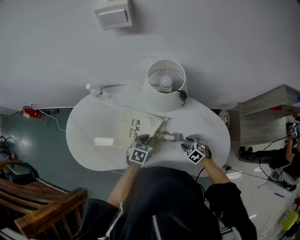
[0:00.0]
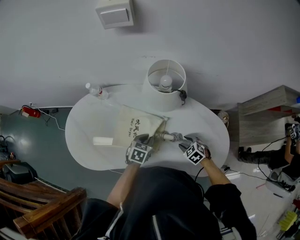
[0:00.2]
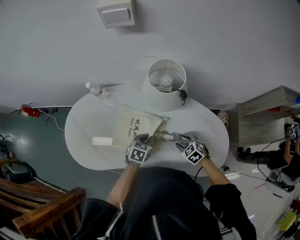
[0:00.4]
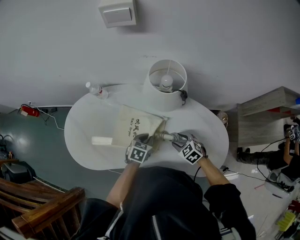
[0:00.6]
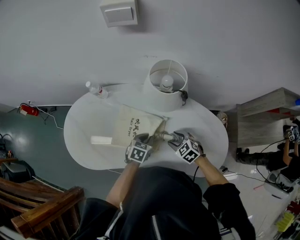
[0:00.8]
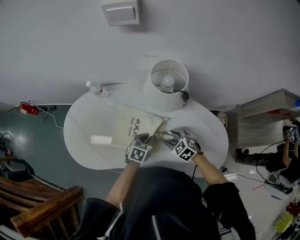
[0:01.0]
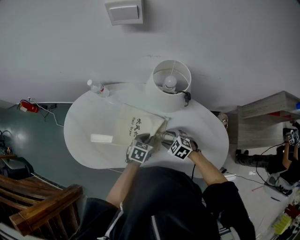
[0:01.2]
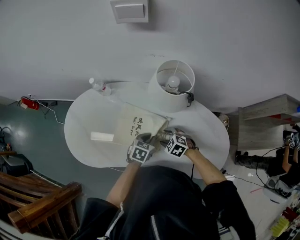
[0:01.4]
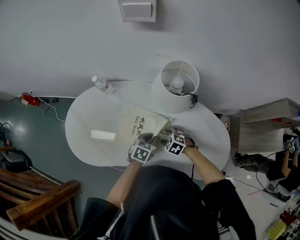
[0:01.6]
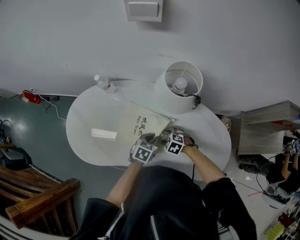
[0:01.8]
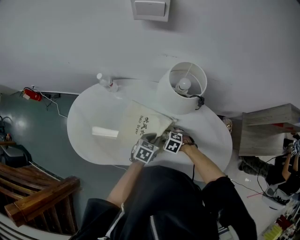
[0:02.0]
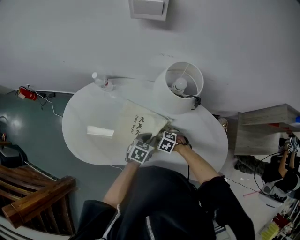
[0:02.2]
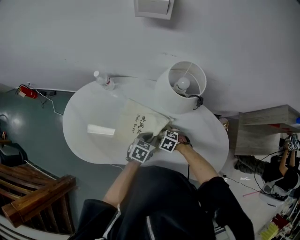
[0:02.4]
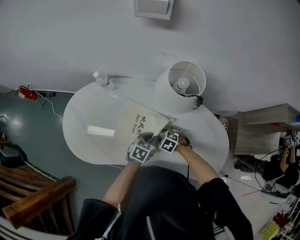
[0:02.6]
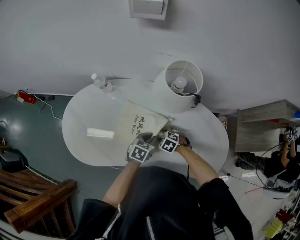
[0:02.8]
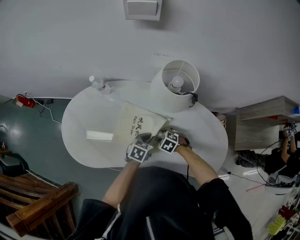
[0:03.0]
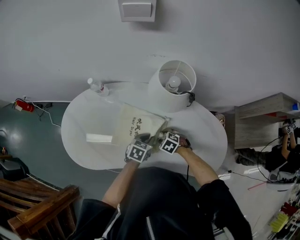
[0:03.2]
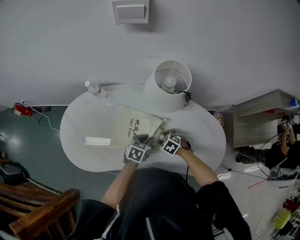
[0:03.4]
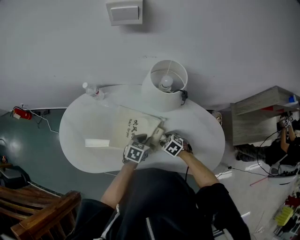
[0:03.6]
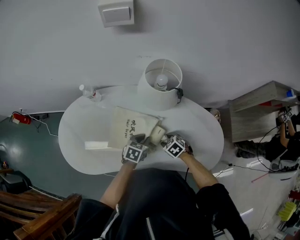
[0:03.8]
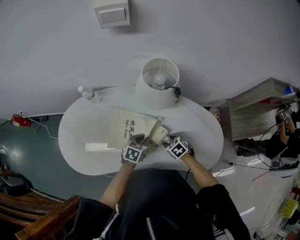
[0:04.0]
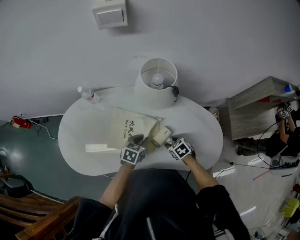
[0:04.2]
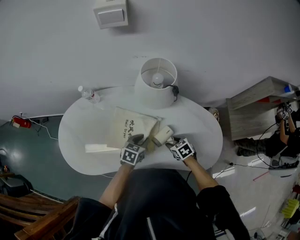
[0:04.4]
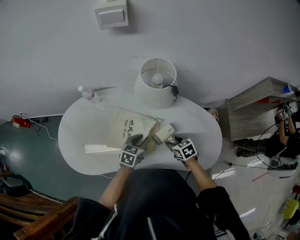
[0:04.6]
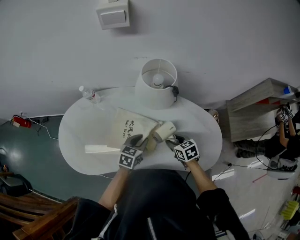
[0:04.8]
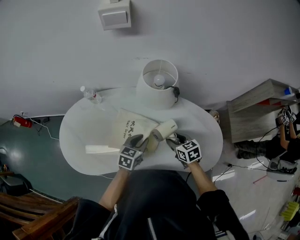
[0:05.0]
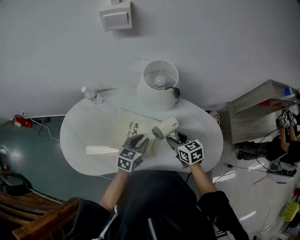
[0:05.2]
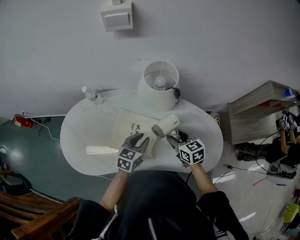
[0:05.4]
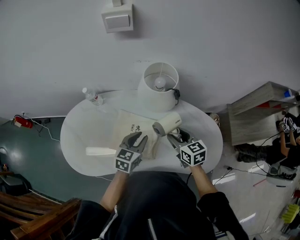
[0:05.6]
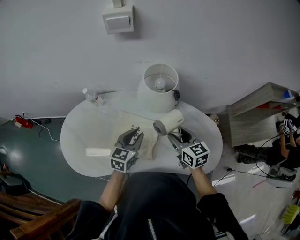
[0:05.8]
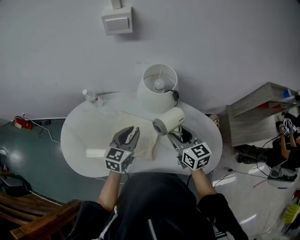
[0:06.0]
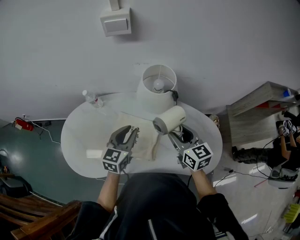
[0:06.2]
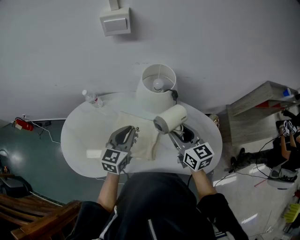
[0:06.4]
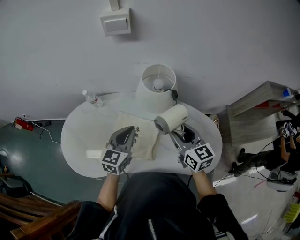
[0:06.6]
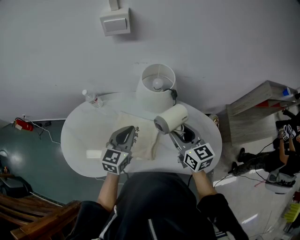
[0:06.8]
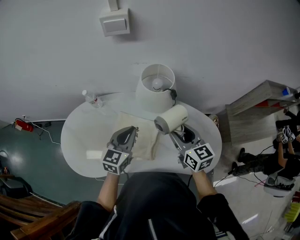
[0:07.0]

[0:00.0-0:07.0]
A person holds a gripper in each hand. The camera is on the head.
0:00.0 to 0:01.4: The right gripper moves to the left and forward, approximately 15 cm, and opens.
0:01.4 to 0:02.8: The right gripper changes place by some 5 cm.
0:02.8 to 0:04.2: The right gripper moves to the right and backward, some 10 cm, and changes its angle by roughly 40 degrees.
0:04.2 to 0:05.6: The right gripper shifts about 20 cm upward, and tilts its fingers some 30 degrees upward; the left gripper is displaced upward by about 10 cm.
0:05.6 to 0:07.0: The two grippers go roughly 10 cm upward.

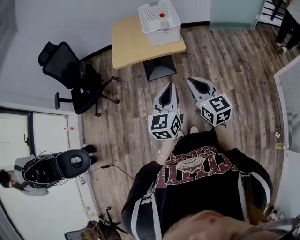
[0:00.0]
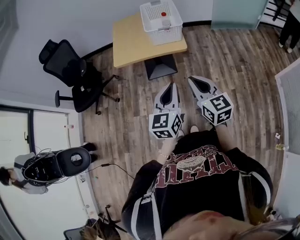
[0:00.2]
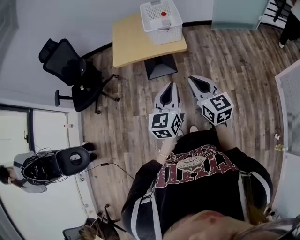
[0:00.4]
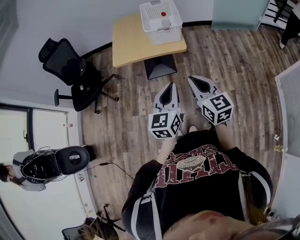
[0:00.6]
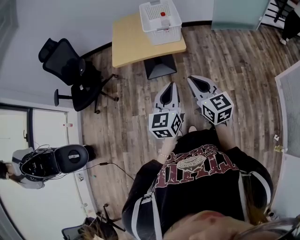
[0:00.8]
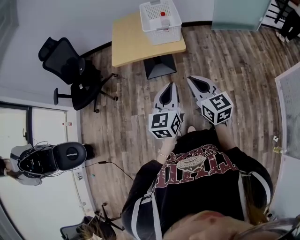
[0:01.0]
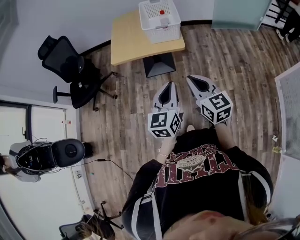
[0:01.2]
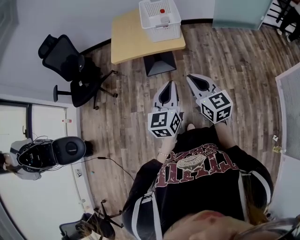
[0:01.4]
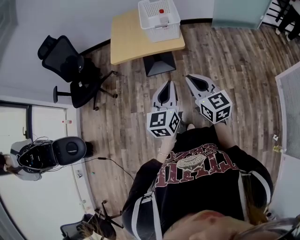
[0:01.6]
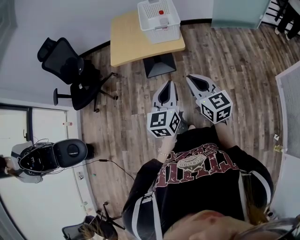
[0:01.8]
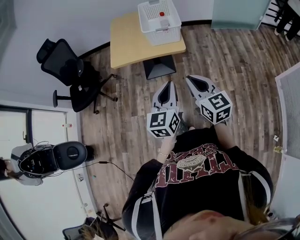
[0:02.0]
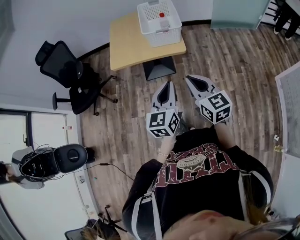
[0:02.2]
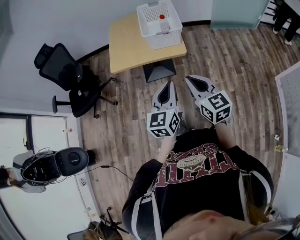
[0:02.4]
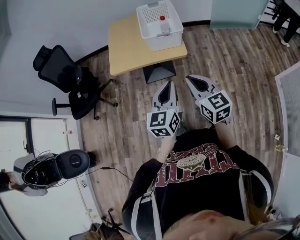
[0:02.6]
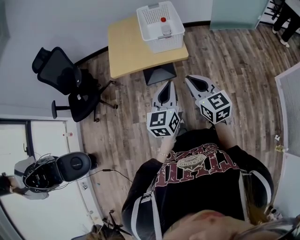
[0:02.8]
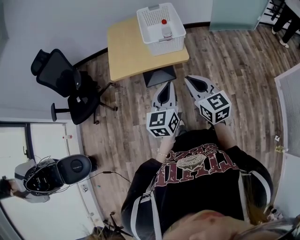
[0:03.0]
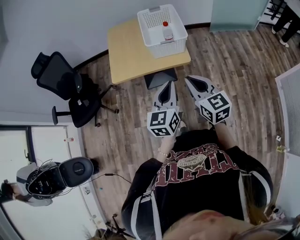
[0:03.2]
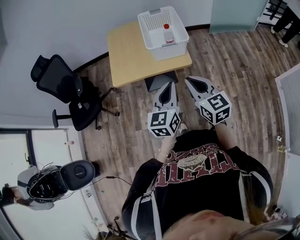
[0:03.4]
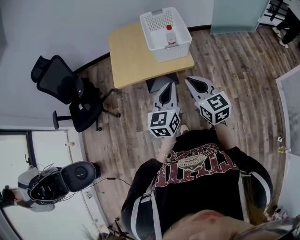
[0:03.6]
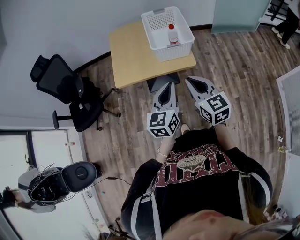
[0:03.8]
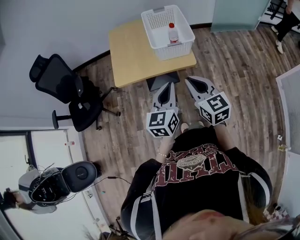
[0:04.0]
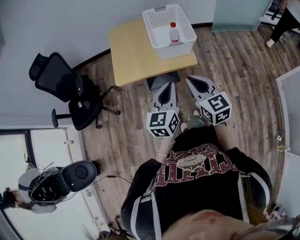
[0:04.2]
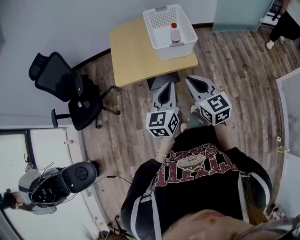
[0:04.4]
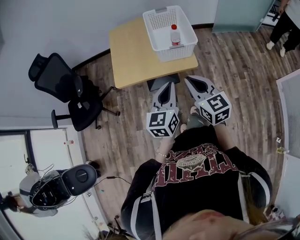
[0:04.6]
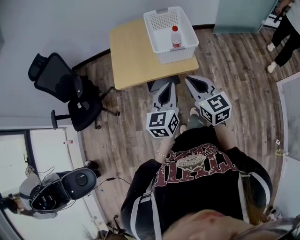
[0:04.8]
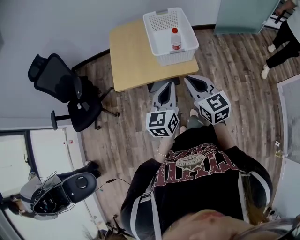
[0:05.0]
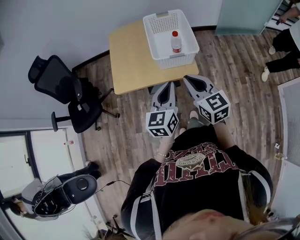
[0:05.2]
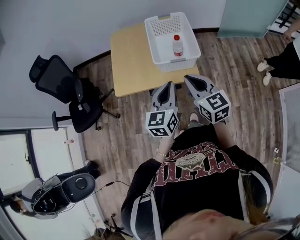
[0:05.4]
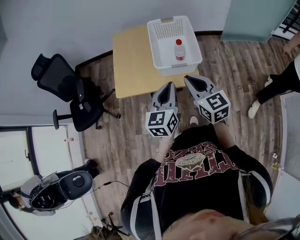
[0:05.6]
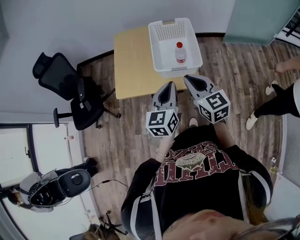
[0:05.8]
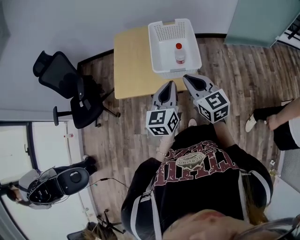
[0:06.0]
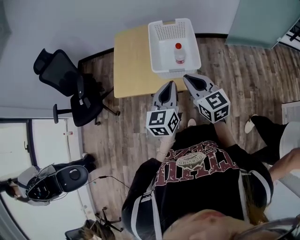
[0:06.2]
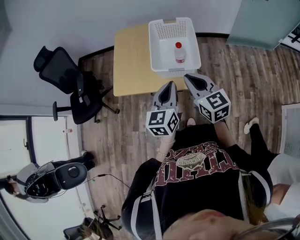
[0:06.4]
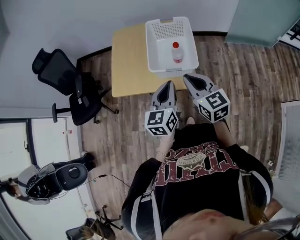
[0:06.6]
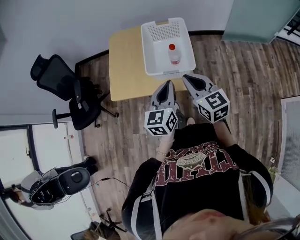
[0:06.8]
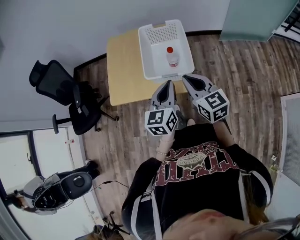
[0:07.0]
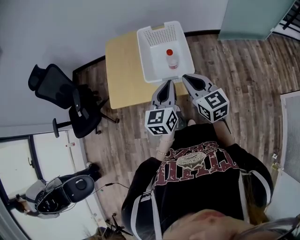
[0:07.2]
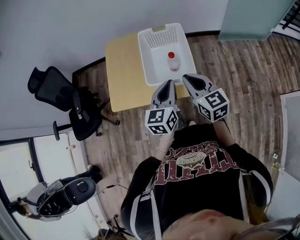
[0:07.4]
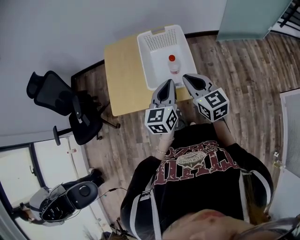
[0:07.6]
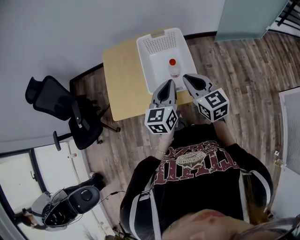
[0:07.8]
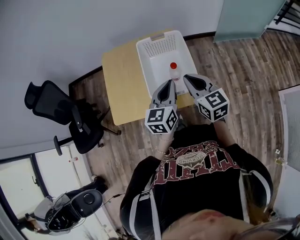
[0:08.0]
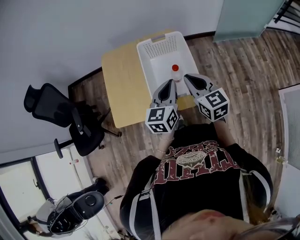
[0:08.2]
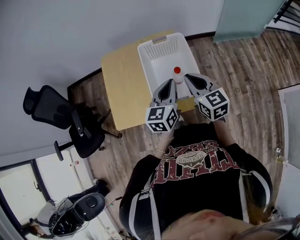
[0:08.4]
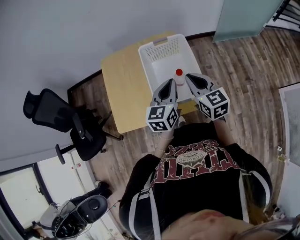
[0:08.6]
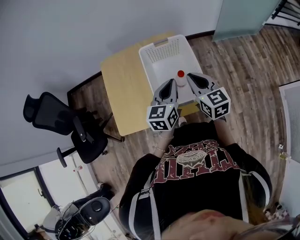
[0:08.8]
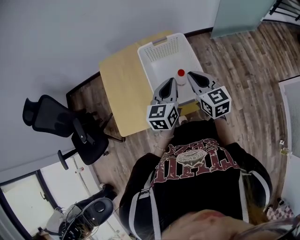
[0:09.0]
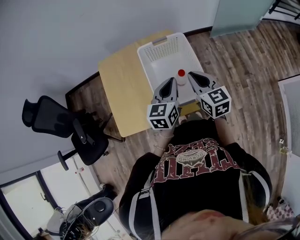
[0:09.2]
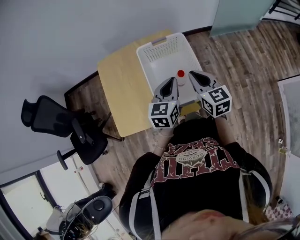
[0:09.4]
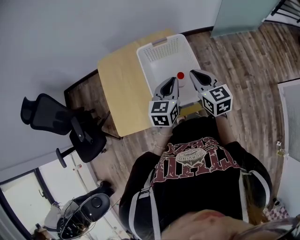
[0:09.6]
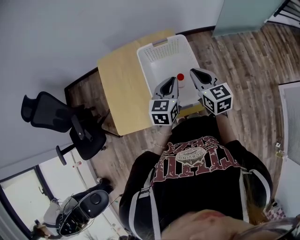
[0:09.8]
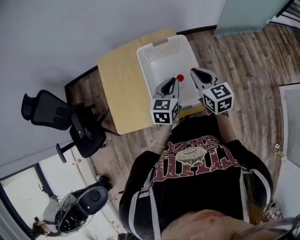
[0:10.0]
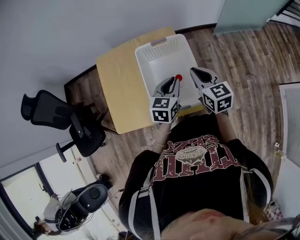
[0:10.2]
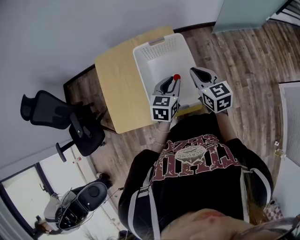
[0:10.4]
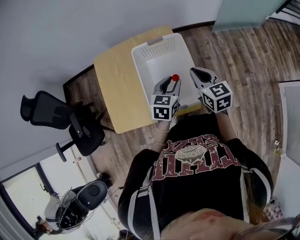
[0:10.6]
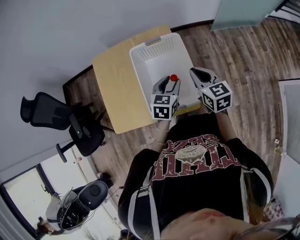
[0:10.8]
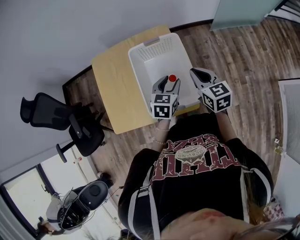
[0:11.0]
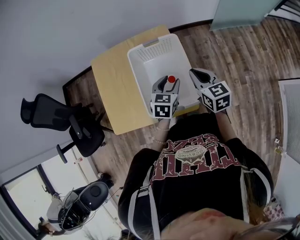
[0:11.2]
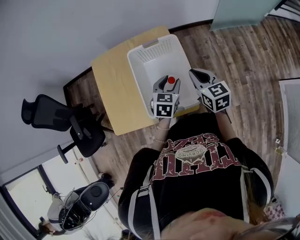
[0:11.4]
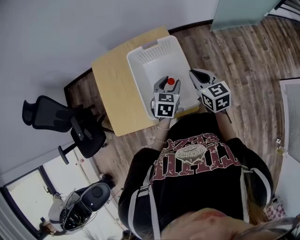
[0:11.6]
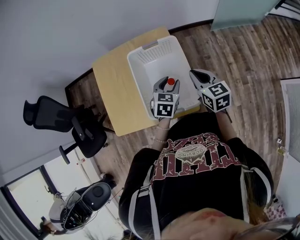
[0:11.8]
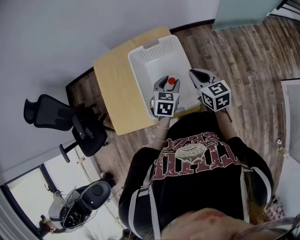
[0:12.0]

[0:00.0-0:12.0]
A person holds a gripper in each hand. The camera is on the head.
0:00.0 to 0:01.6: The grippers move only a little.
0:01.6 to 0:03.0: Both grippers move forward, roughly 15 cm.
0:03.0 to 0:04.4: The grippers both shift forward and to the left by about 10 cm.
0:04.4 to 0:06.0: The right gripper goes some 15 cm forward; the left gripper moves forward and to the right, some 15 cm.
0:06.0 to 0:07.6: Both grippers travel together forward, some 10 cm.
0:07.6 to 0:09.0: The two grippers go about 10 cm forward.
0:09.0 to 0:10.4: The left gripper goes some 5 cm downward. The right gripper ends up some 5 cm from where it was.
0:10.4 to 0:12.0: The left gripper opens its fingers.

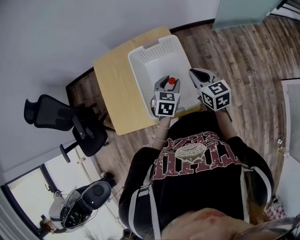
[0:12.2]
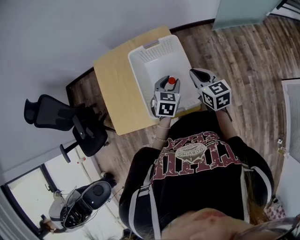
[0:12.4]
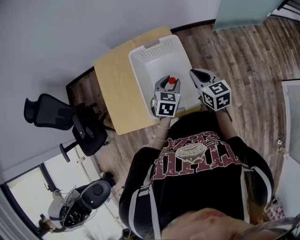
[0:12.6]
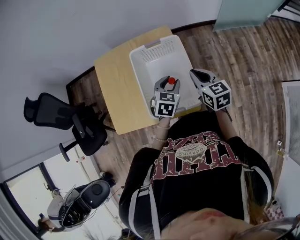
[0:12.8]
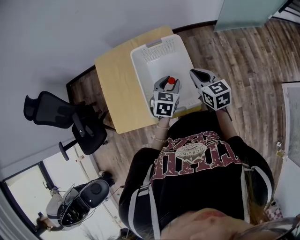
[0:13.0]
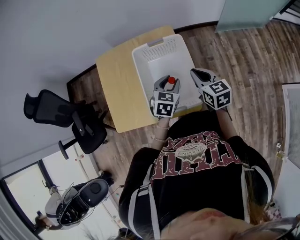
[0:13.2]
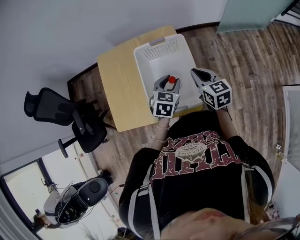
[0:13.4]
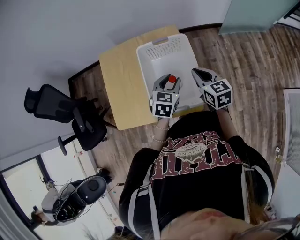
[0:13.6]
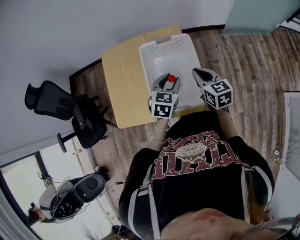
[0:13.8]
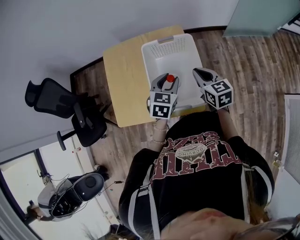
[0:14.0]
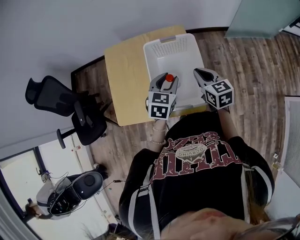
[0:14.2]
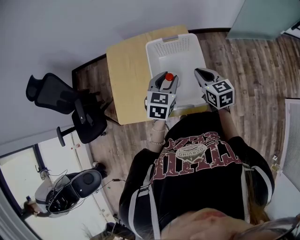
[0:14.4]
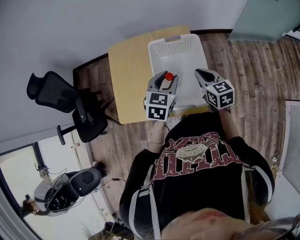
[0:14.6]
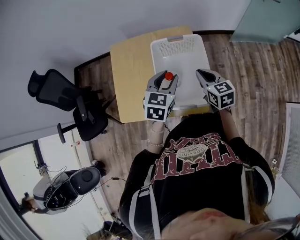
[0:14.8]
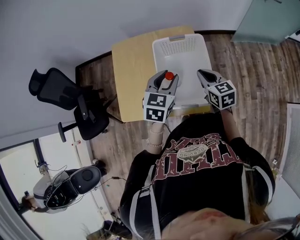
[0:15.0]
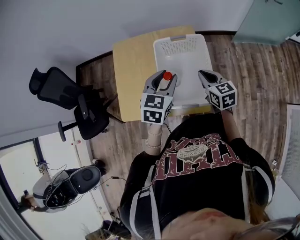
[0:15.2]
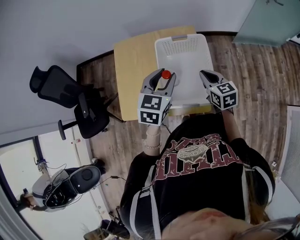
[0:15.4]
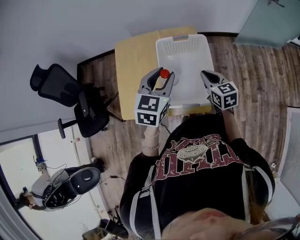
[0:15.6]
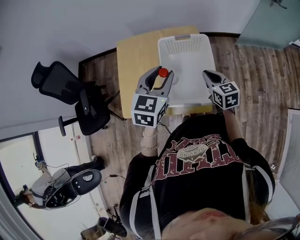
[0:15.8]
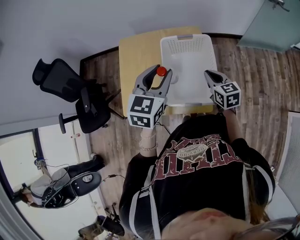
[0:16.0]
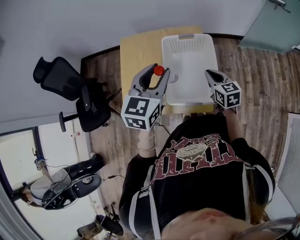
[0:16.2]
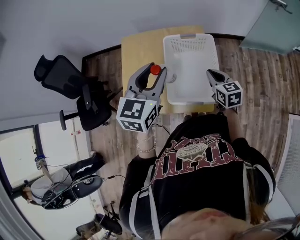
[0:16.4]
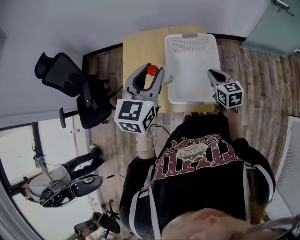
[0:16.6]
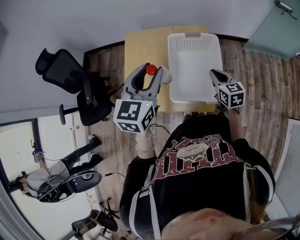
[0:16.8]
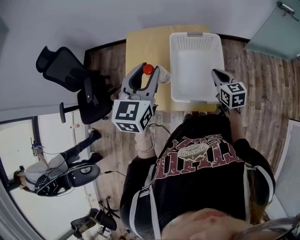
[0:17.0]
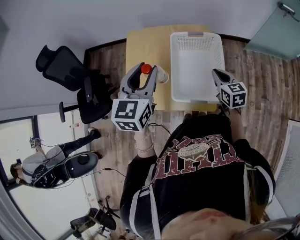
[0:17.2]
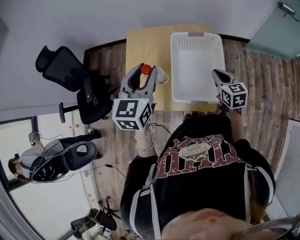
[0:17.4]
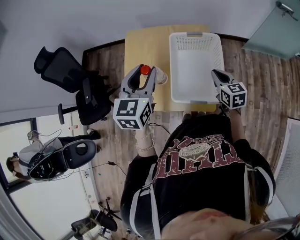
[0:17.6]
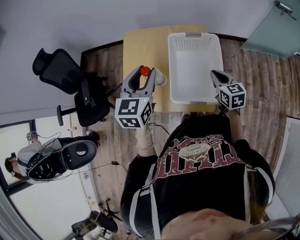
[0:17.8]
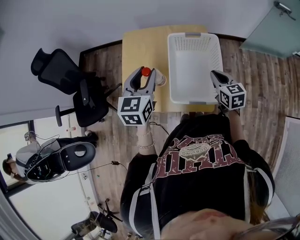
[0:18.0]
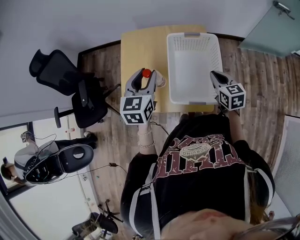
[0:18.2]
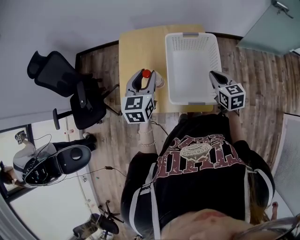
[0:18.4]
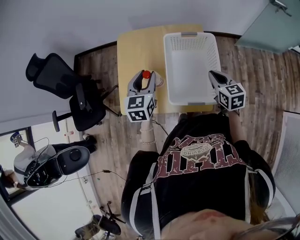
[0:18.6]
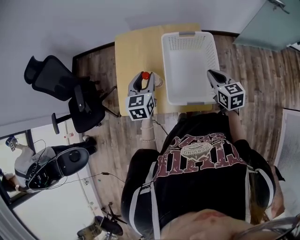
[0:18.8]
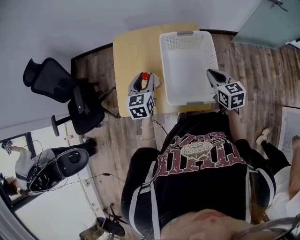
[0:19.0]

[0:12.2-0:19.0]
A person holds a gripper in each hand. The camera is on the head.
0:12.2 to 0:13.6: The grippers move only a little.
0:13.6 to 0:15.0: The left gripper heads upward and to the left, covering roughly 10 cm.
0:15.0 to 0:16.2: The left gripper is displaced upward and to the left by roughly 10 cm.
0:16.2 to 0:17.6: The left gripper moves to the left, approximately 10 cm.
0:17.6 to 0:19.0: The left gripper heads downward, covering about 15 cm.
